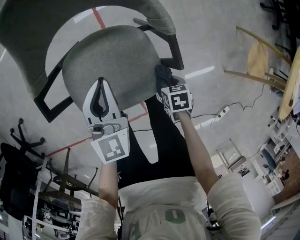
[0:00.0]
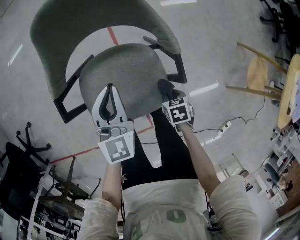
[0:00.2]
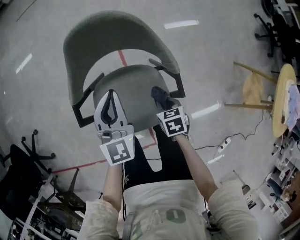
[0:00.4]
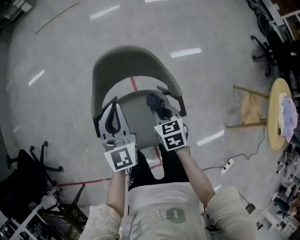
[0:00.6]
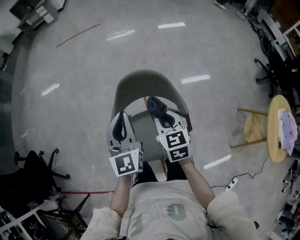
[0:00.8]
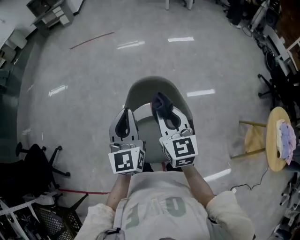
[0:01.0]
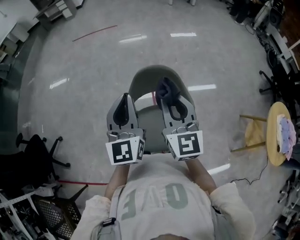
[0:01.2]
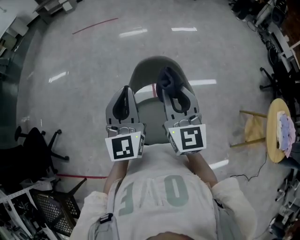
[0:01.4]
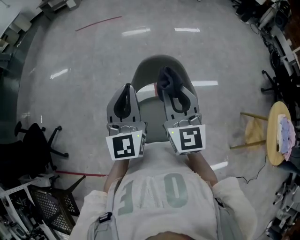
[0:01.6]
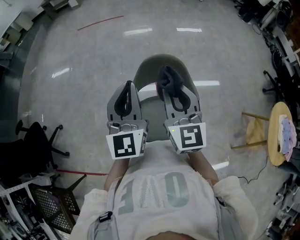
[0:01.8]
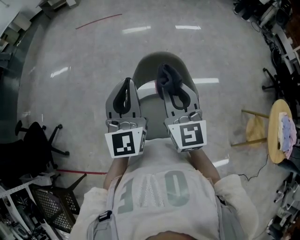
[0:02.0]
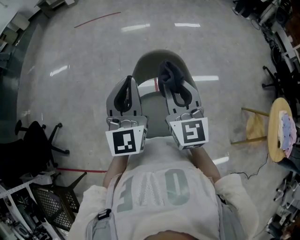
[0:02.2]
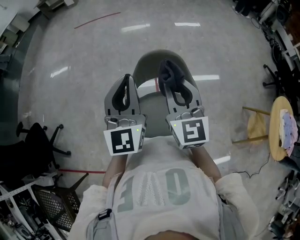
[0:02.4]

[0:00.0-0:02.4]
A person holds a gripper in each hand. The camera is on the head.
0:00.0 to 0:01.2: The right gripper travels upward by roughly 60 cm, and angles its fingers upward, by about 80 degrees; the left gripper travels upward by roughly 40 cm, and swivels about 30 degrees.
0:01.2 to 0:02.4: There are only small adjustments of the grippers.

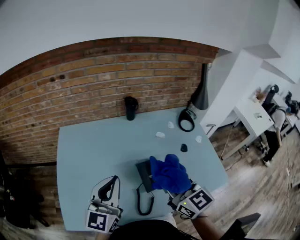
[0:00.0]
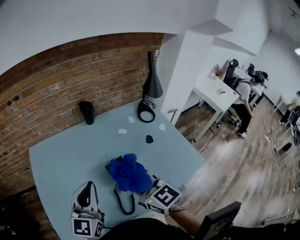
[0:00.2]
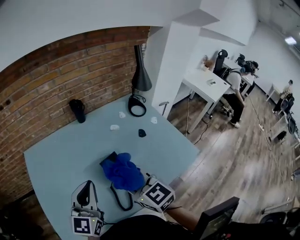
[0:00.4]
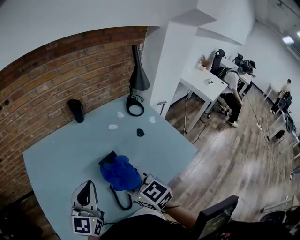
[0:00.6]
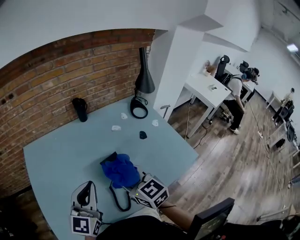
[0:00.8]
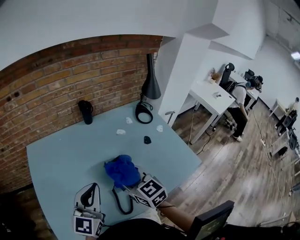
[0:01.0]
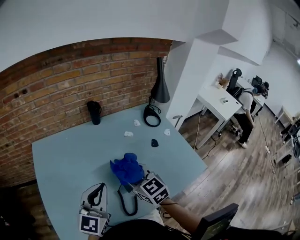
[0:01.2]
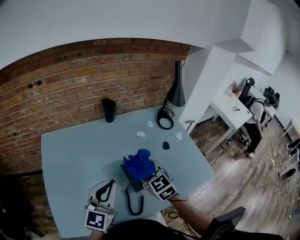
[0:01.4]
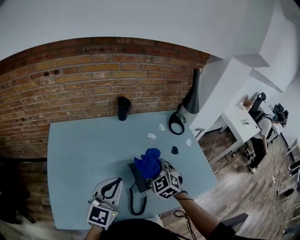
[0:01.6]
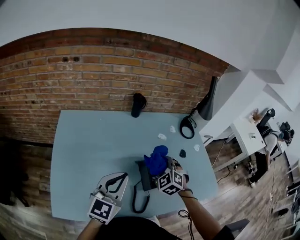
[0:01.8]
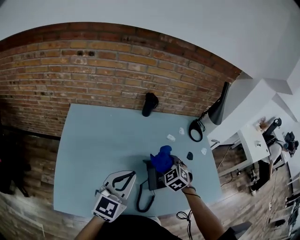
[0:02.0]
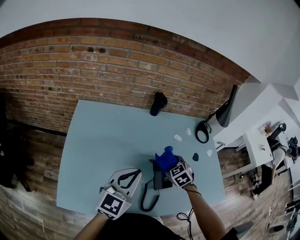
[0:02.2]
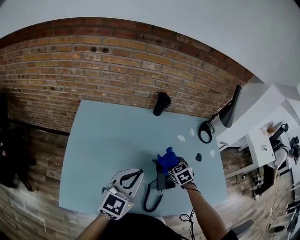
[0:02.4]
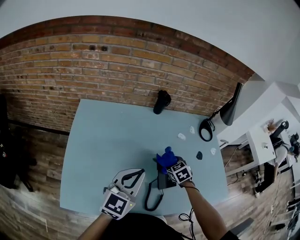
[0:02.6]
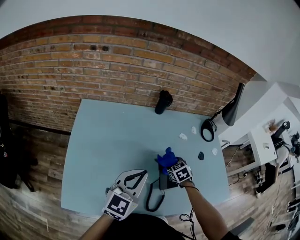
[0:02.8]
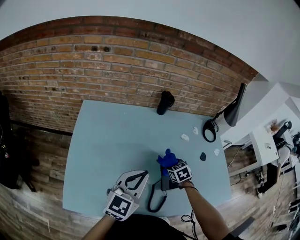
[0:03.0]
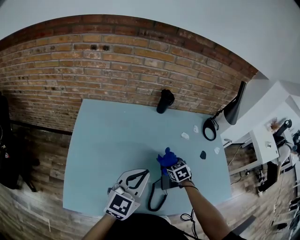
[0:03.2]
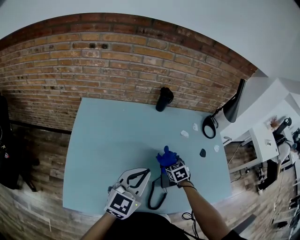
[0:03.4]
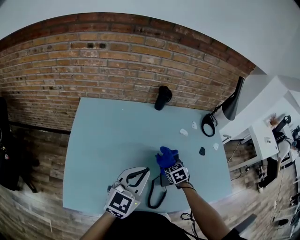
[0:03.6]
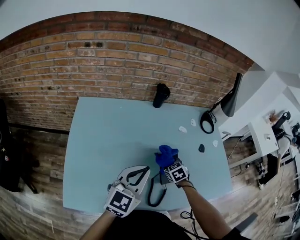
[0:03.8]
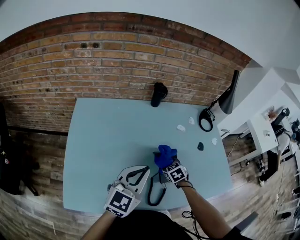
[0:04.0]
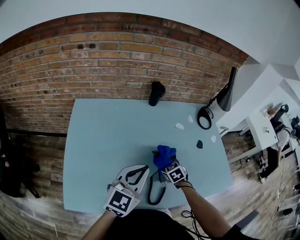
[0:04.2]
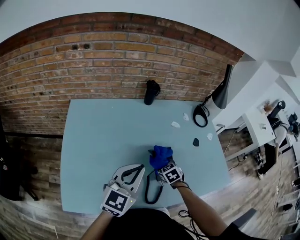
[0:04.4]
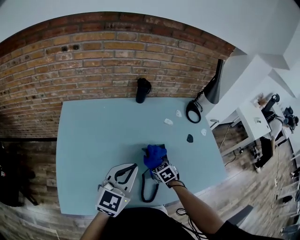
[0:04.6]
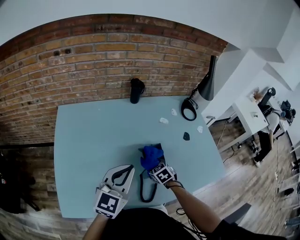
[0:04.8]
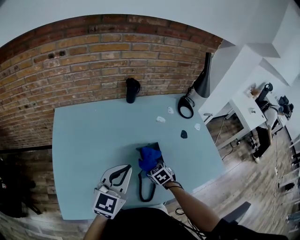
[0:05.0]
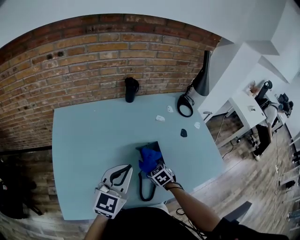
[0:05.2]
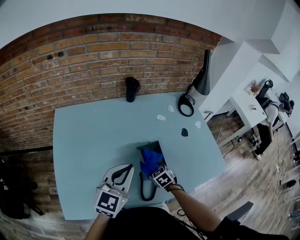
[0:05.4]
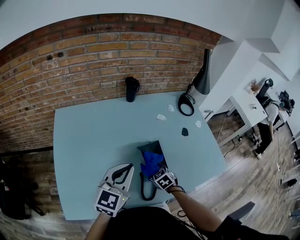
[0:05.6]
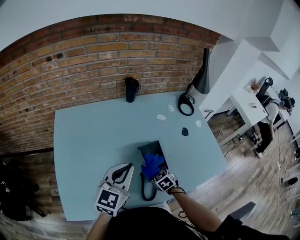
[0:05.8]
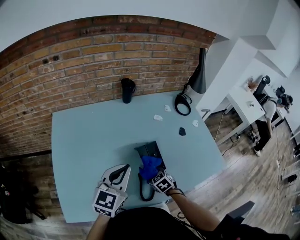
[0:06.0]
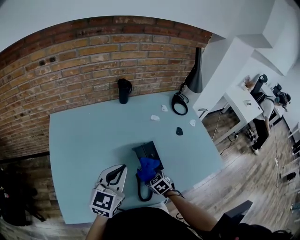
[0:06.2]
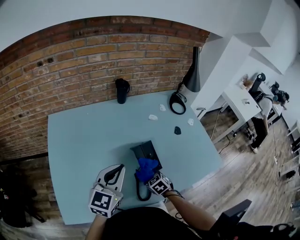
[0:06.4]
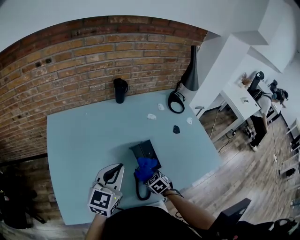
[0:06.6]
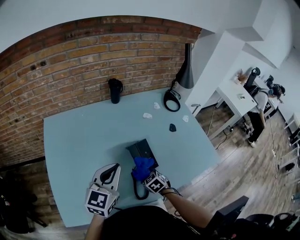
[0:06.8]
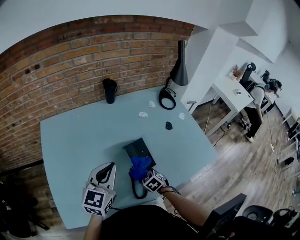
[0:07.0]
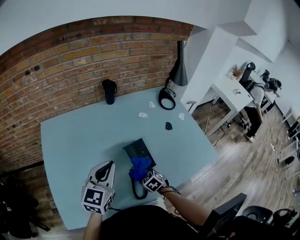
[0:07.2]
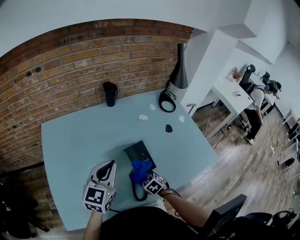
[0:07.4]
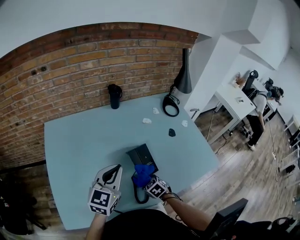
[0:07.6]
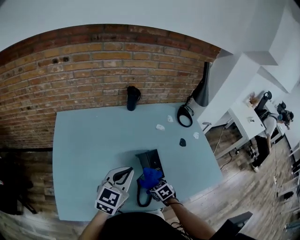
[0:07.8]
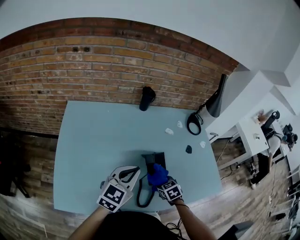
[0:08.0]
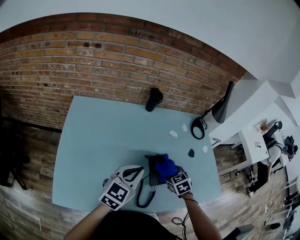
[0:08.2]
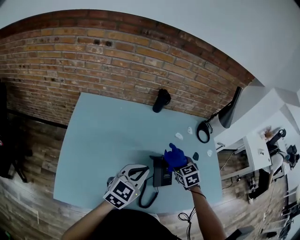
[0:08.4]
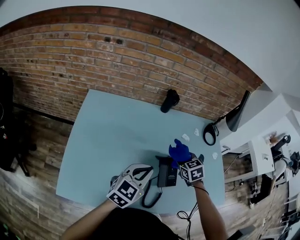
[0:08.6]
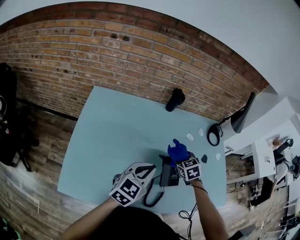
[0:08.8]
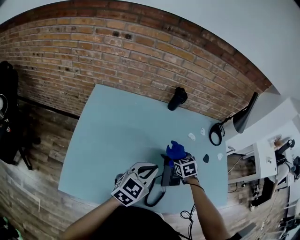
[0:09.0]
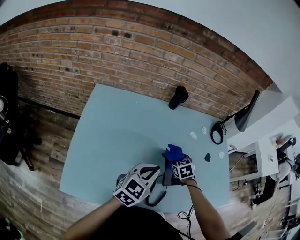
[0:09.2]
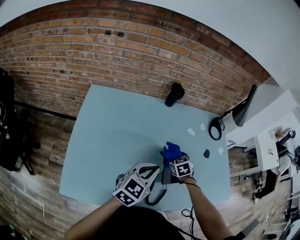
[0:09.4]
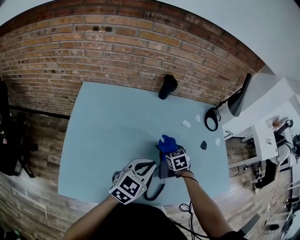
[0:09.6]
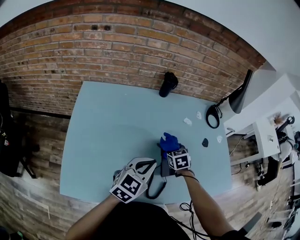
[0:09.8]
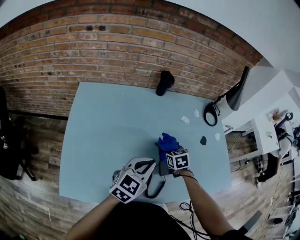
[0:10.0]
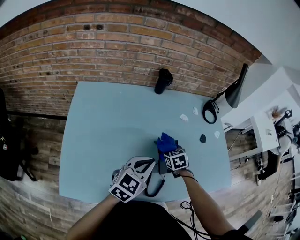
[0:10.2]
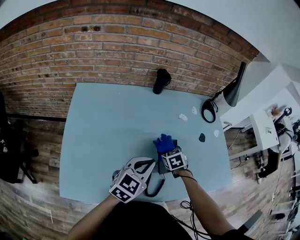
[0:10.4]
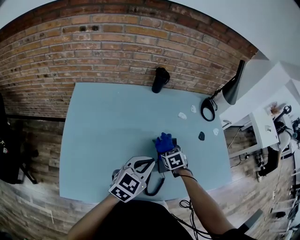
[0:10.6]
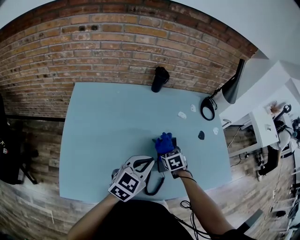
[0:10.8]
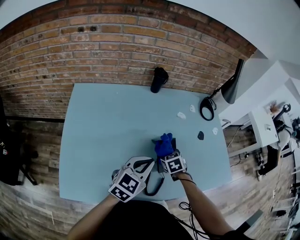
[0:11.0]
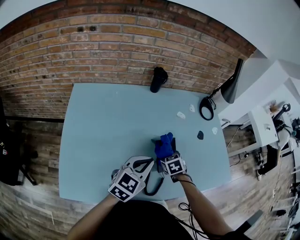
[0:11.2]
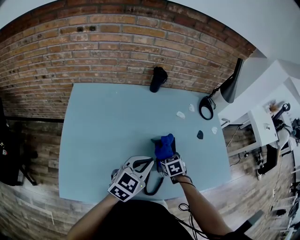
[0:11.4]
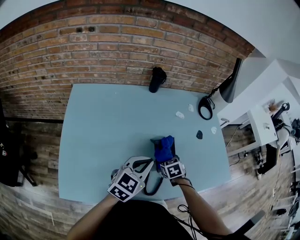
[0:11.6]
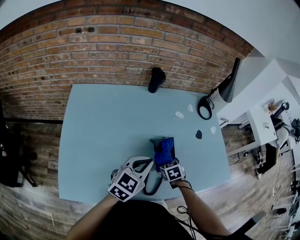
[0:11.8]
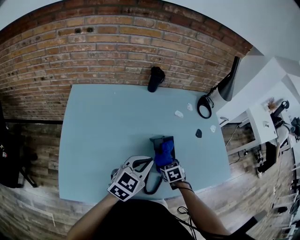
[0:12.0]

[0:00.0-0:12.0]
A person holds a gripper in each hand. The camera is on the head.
0:00.0 to 0:01.6: The right gripper moves downward and forward, some 15 cm, and turns by some 50 degrees. The left gripper shifts approximately 5 cm downward.
0:01.6 to 0:03.0: The right gripper is displaced downward by about 15 cm, and changes its angle by about 30 degrees.
0:03.0 to 0:04.4: The right gripper is displaced backward by some 5 cm.
0:04.4 to 0:06.0: The right gripper goes about 10 cm backward.
0:06.0 to 0:07.6: There are only small adjustments of the grippers.
0:07.6 to 0:09.0: The right gripper shifts some 20 cm forward and upward.
0:09.0 to 0:10.4: The right gripper shifts by roughly 5 cm.
0:10.4 to 0:12.0: The right gripper goes some 5 cm backward.

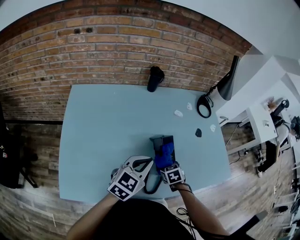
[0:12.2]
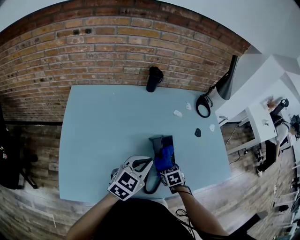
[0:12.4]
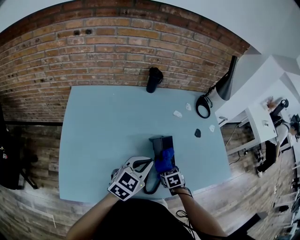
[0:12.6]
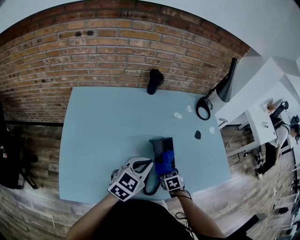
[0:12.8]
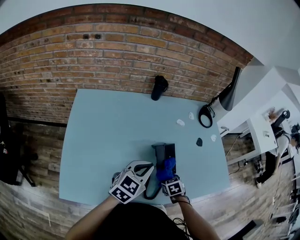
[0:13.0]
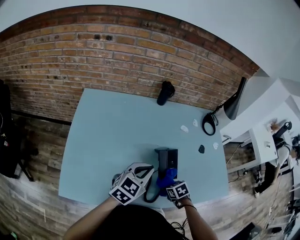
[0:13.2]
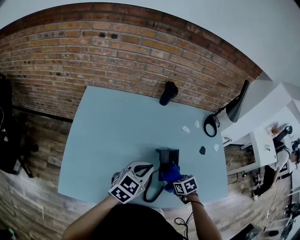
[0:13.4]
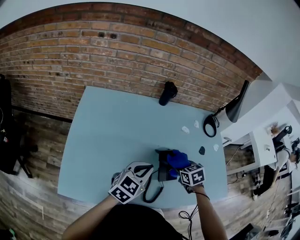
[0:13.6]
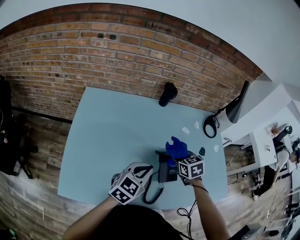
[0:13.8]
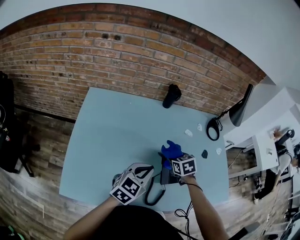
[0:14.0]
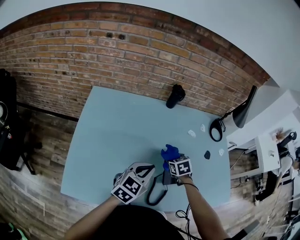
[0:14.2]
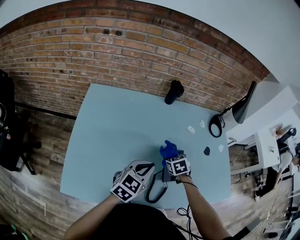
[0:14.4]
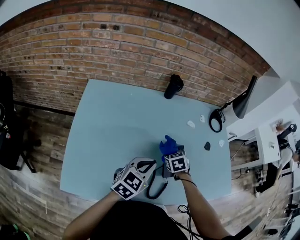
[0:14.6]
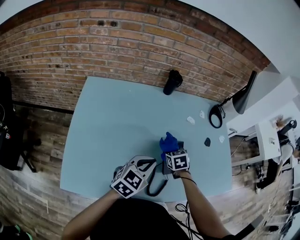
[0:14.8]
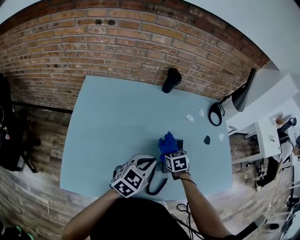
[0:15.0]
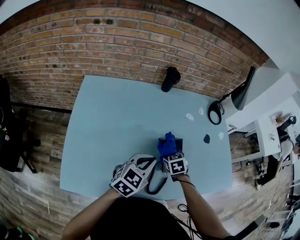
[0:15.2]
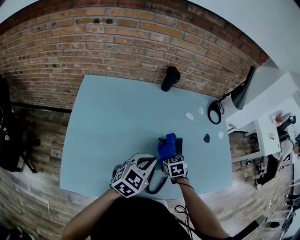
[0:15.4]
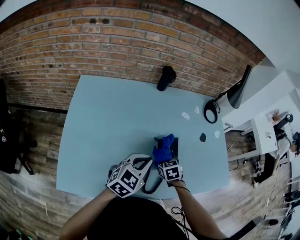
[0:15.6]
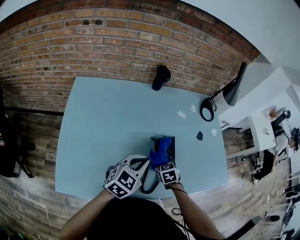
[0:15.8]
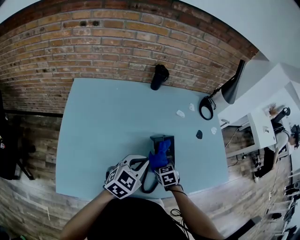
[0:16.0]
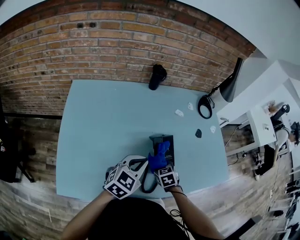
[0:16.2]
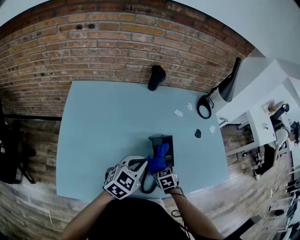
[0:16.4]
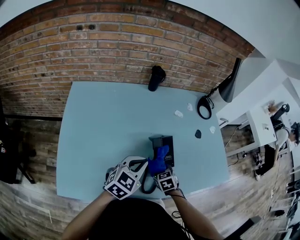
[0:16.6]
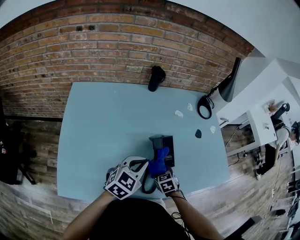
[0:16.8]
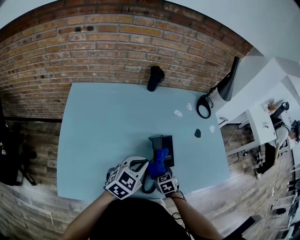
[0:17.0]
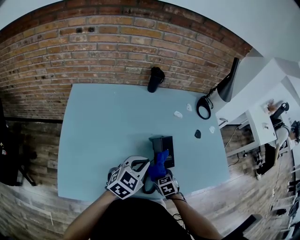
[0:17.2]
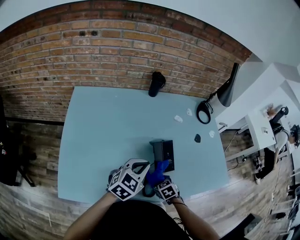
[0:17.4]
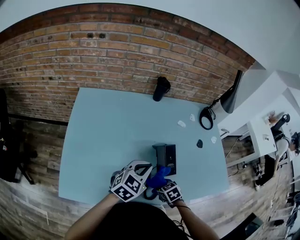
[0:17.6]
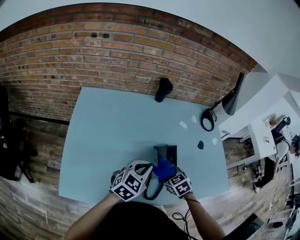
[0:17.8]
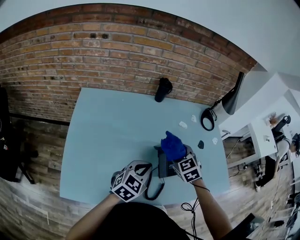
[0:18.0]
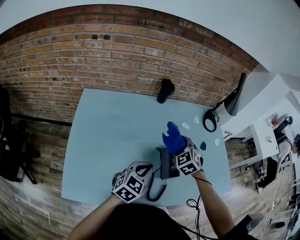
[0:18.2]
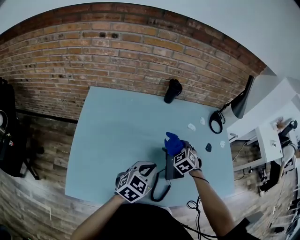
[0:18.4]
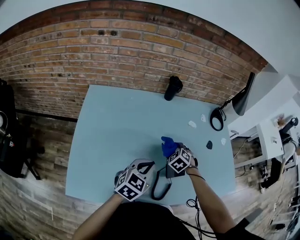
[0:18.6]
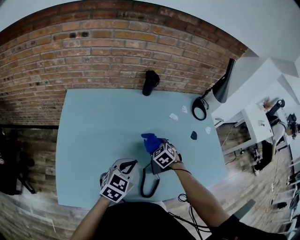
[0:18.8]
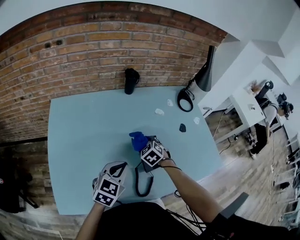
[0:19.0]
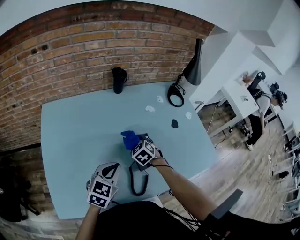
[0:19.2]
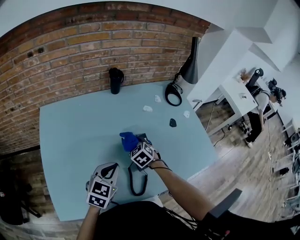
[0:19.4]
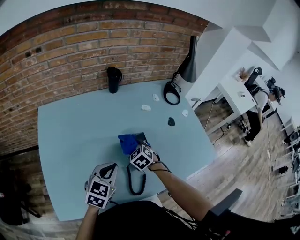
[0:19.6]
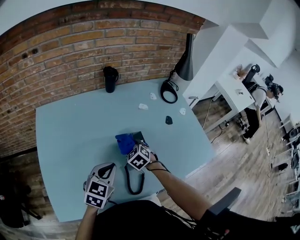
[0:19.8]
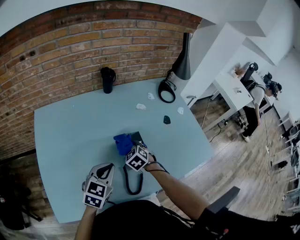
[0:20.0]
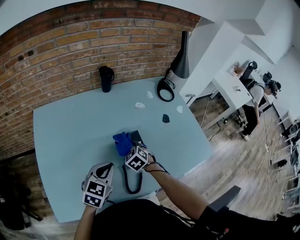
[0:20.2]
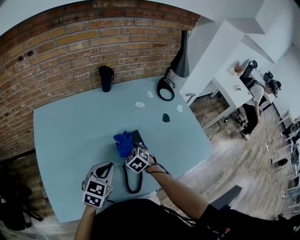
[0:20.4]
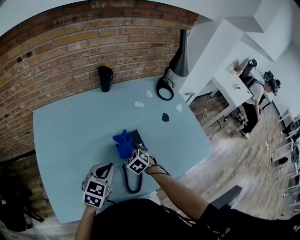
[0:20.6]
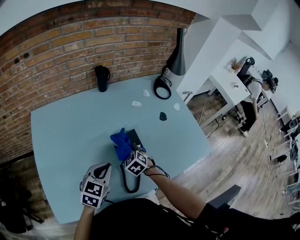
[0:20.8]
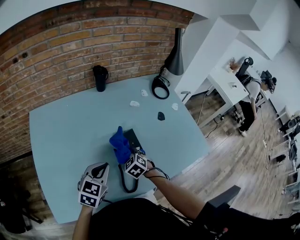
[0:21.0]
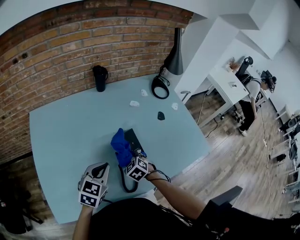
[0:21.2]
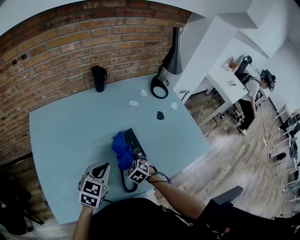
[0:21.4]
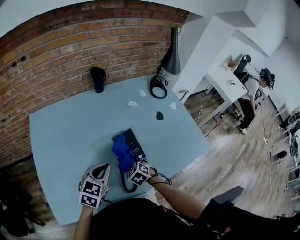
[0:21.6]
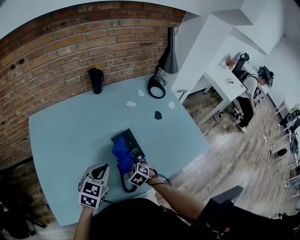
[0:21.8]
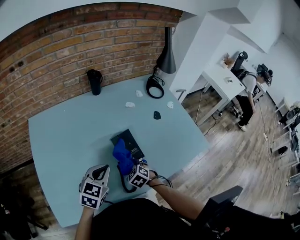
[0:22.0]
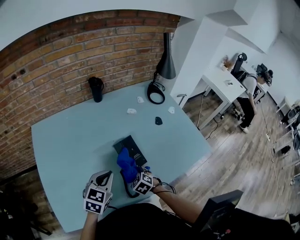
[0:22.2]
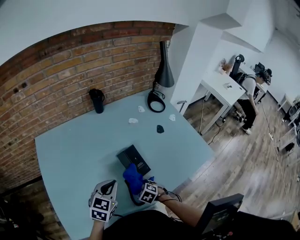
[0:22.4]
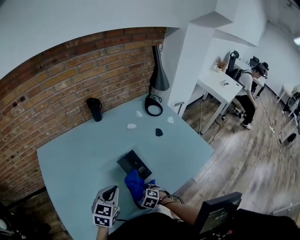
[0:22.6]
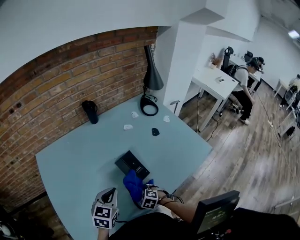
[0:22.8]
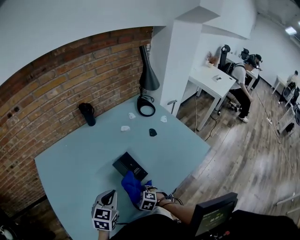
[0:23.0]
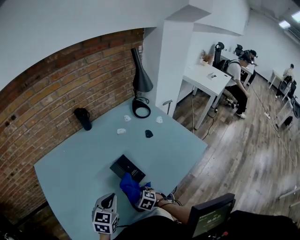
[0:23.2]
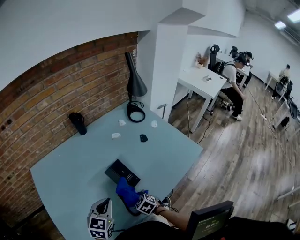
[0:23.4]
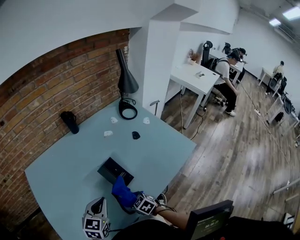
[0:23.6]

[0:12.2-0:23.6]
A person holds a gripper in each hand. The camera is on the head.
0:12.2 to 0:13.6: The right gripper moves upward and forward, approximately 15 cm.
0:13.6 to 0:15.0: The right gripper moves downward and to the left, roughly 10 cm.
0:15.0 to 0:16.4: The right gripper is displaced backward by about 10 cm.
0:16.4 to 0:17.8: The right gripper is displaced upward by some 5 cm.
0:17.8 to 0:19.4: The right gripper shifts about 10 cm forward.
0:19.4 to 0:20.8: The right gripper travels backward by roughly 5 cm.
0:20.8 to 0:22.2: The right gripper travels backward and downward by about 10 cm.
0:22.2 to 0:23.6: The right gripper rotates roughly 30 degrees.
